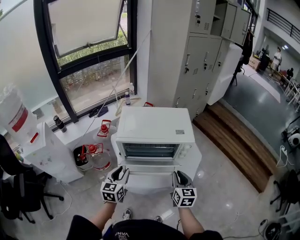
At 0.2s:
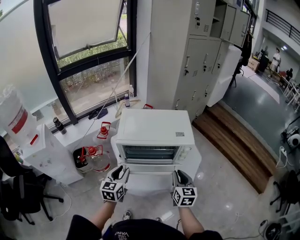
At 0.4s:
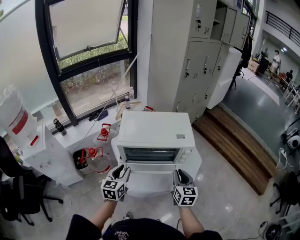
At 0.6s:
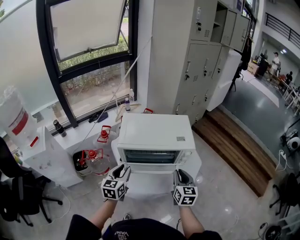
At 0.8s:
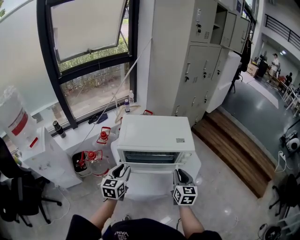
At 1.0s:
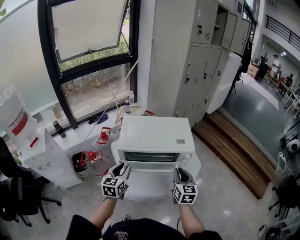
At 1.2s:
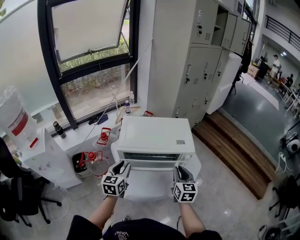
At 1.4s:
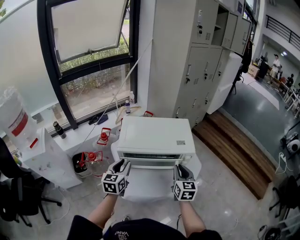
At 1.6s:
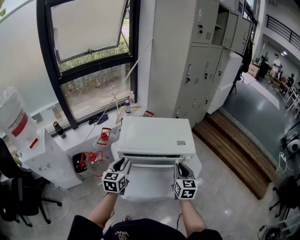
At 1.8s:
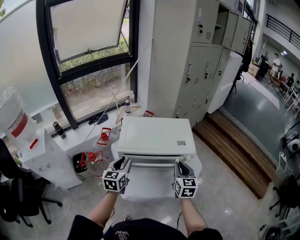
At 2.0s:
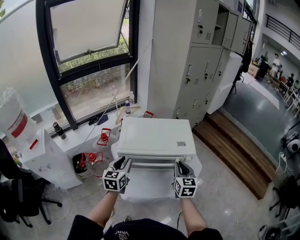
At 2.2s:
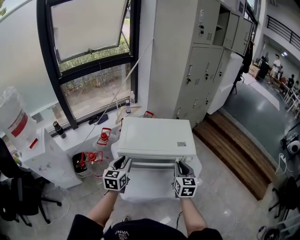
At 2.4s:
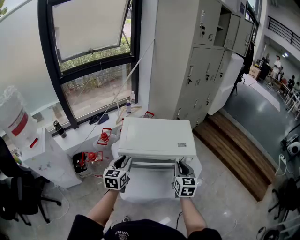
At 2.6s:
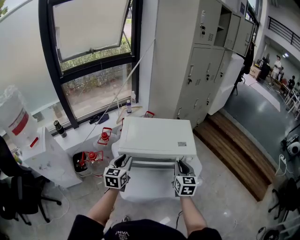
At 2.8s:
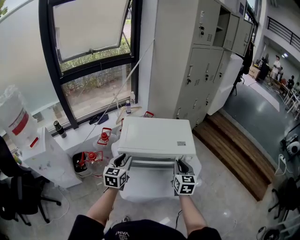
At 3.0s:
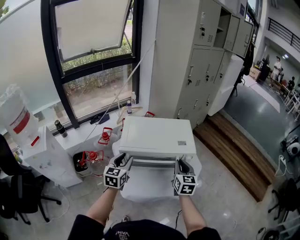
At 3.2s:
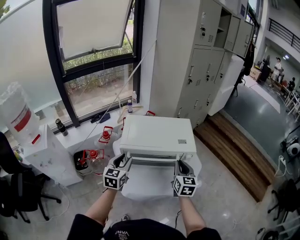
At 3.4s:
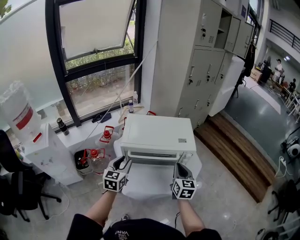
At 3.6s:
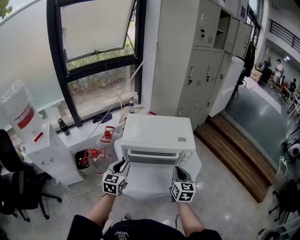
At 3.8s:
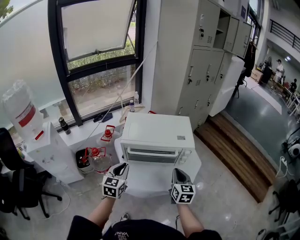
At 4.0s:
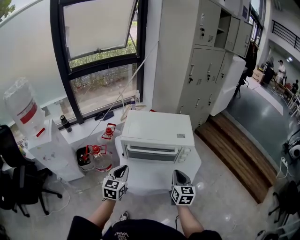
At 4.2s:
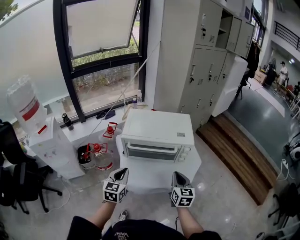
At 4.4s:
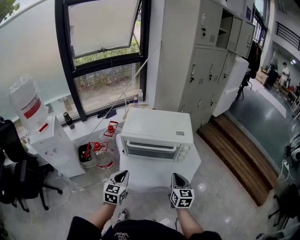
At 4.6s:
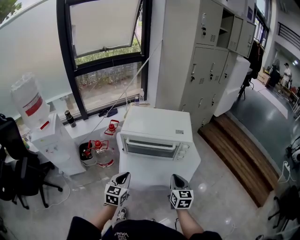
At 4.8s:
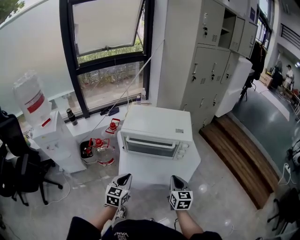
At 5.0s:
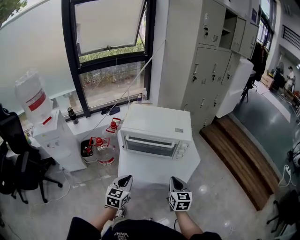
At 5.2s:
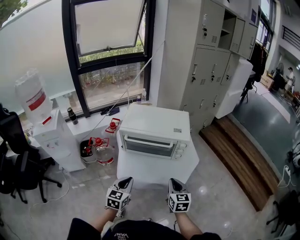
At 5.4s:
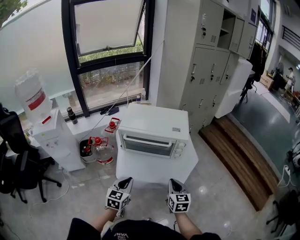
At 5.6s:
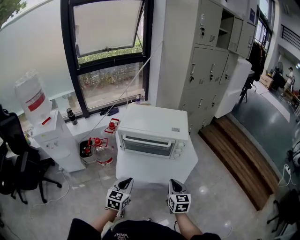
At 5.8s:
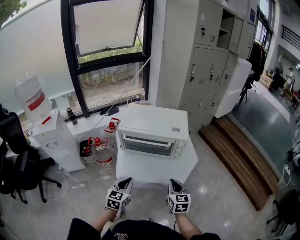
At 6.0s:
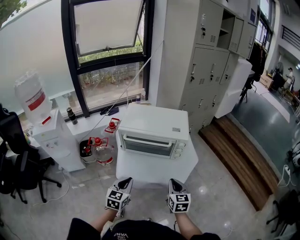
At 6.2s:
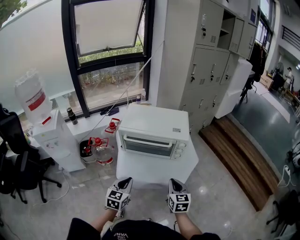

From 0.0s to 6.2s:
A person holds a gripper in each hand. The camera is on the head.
From 0.0s to 1.6s: The two grippers go roughly 10 cm forward.
From 1.6s to 3.2s: There are only small adjustments of the grippers.
From 3.2s to 4.6s: The left gripper is displaced backward by about 15 cm, and closes. The right gripper travels backward and downward by approximately 15 cm.
From 4.6s to 6.2s: The left gripper moves about 5 cm.

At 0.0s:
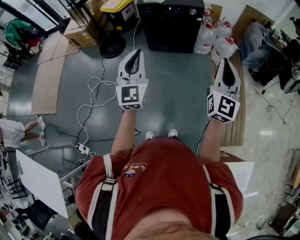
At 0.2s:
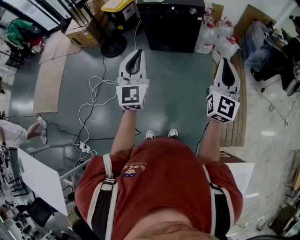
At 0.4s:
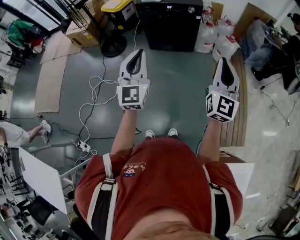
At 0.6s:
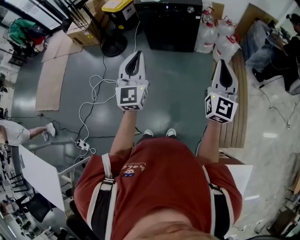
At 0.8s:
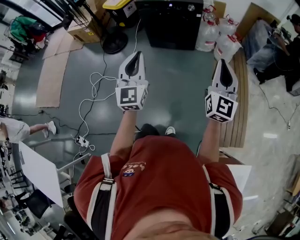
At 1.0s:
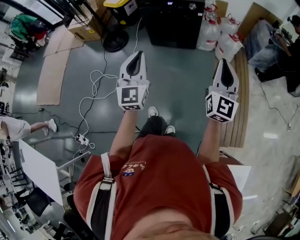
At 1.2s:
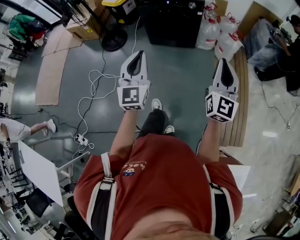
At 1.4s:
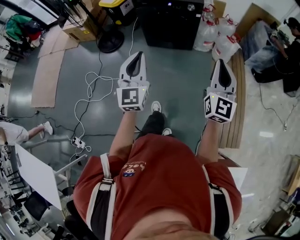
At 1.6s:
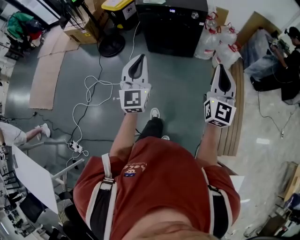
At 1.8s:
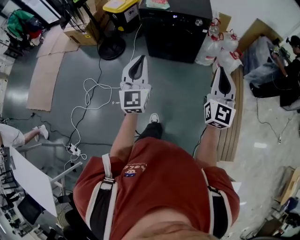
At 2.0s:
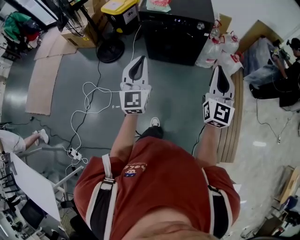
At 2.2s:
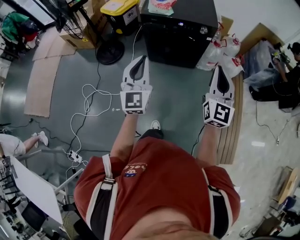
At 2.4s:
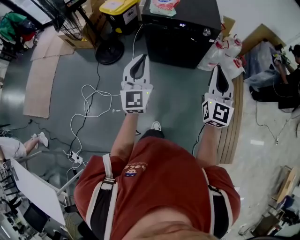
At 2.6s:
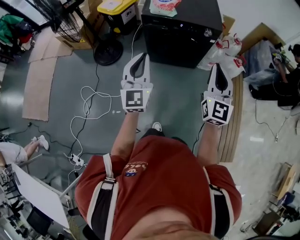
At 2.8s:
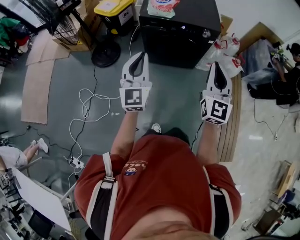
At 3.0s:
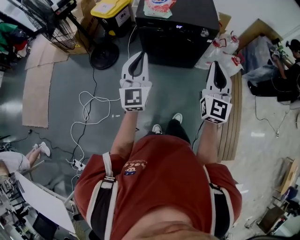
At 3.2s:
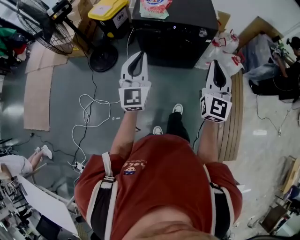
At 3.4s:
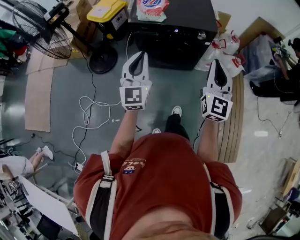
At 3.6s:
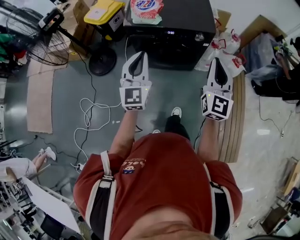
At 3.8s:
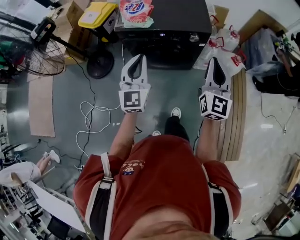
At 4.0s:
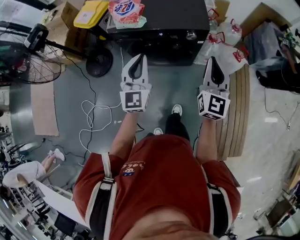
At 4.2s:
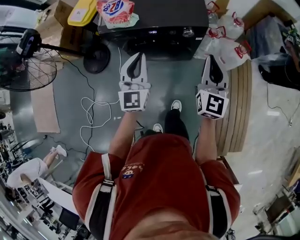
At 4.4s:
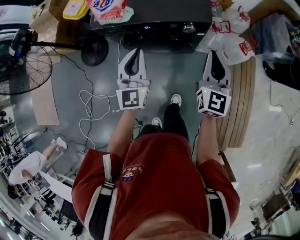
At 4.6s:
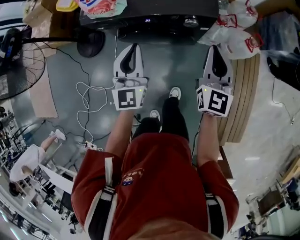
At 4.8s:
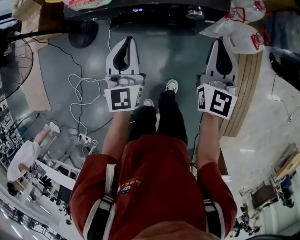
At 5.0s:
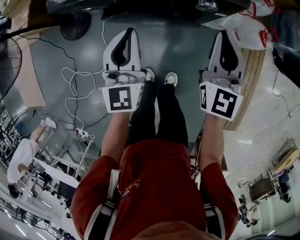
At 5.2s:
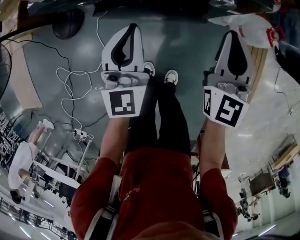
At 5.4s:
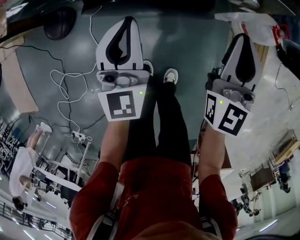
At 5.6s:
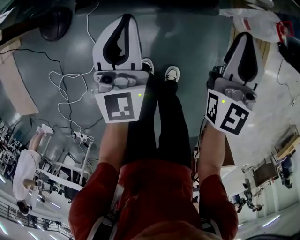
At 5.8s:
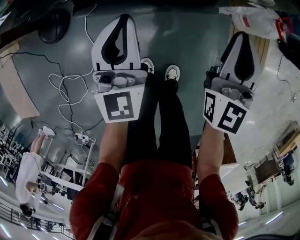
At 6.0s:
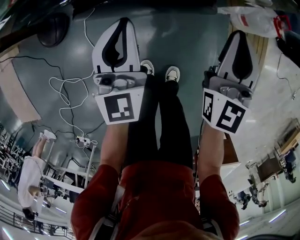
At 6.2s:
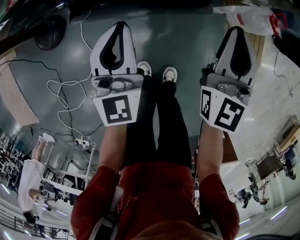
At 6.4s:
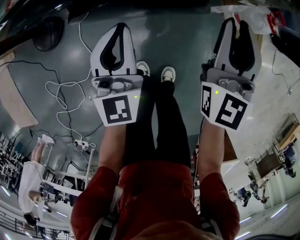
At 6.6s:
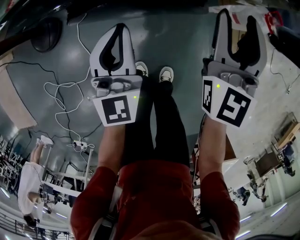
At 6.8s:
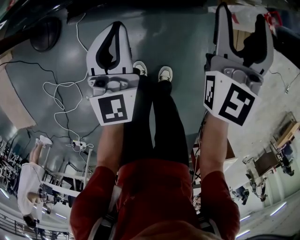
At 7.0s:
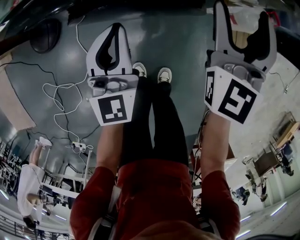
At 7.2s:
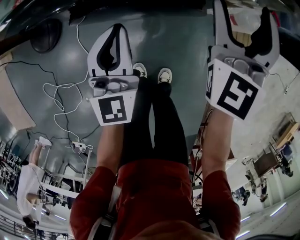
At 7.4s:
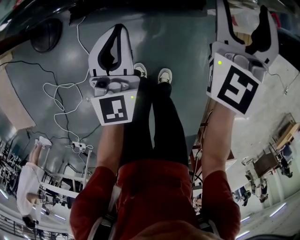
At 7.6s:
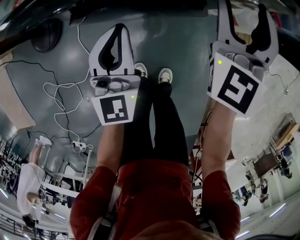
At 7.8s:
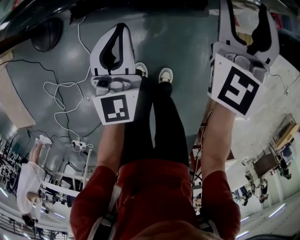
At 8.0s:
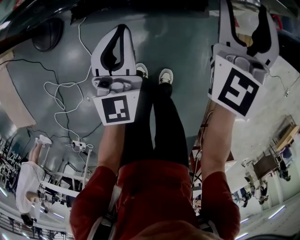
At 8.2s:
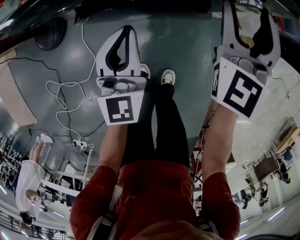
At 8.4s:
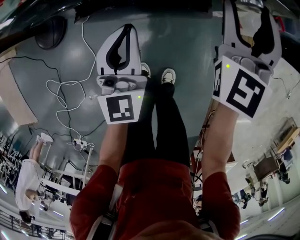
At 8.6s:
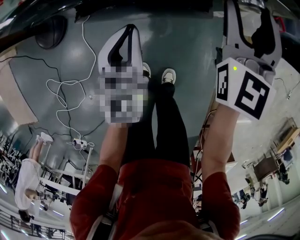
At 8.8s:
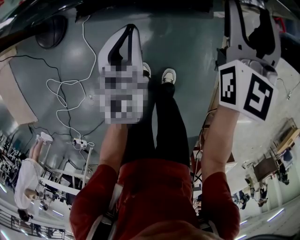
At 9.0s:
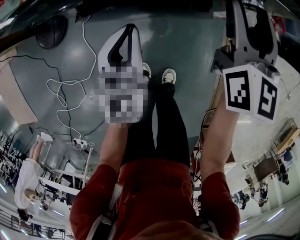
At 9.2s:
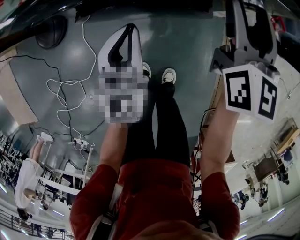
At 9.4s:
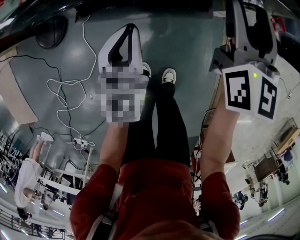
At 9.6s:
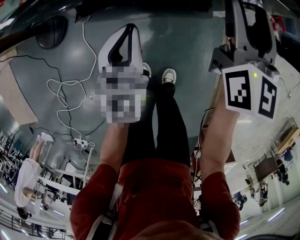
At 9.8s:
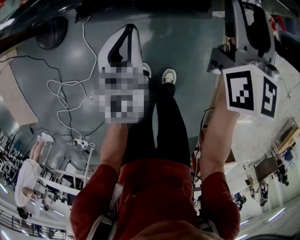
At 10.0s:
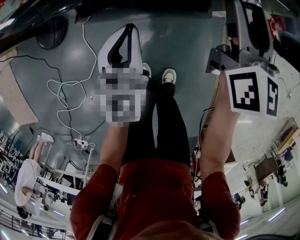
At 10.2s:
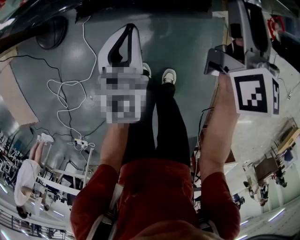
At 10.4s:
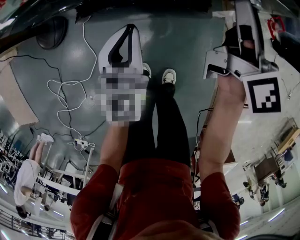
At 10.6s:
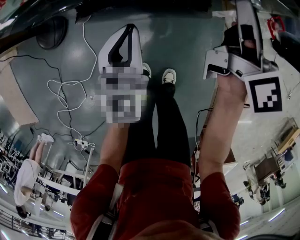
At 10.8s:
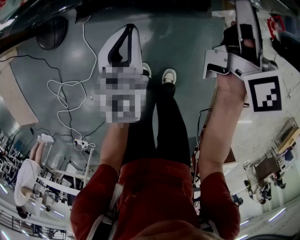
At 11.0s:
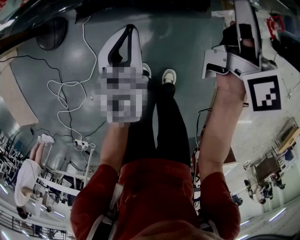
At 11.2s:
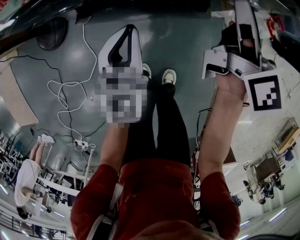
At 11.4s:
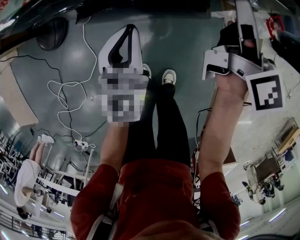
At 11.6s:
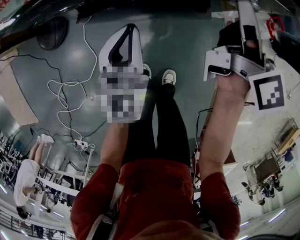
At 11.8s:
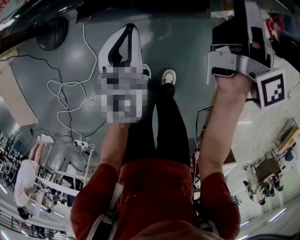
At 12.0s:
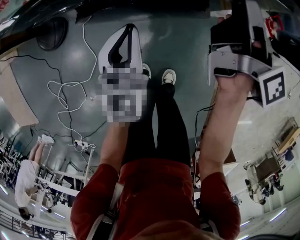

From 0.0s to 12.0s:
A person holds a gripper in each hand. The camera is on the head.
From 0.0s to 1.6s: The right gripper heads forward, covering roughly 10 cm, while the left gripper travels forward and to the right by approximately 10 cm.
From 1.6s to 3.0s: Both grippers move forward and to the left, some 35 cm.
From 3.0s to 4.4s: Both grippers travel together forward, to the right and downward, roughly 40 cm.
From 4.4s to 6.0s: The grippers both shift downward by about 35 cm.
From 6.0s to 7.6s: The right gripper goes about 10 cm forward and upward, and opens.
From 7.6s to 9.0s: The right gripper swivels roughly 30 degrees.
From 9.0s to 10.4s: The right gripper changes its angle by about 30 degrees.
From 10.4s to 12.0s: The right gripper rotates roughly 40 degrees.

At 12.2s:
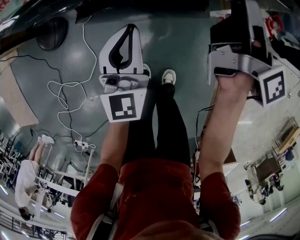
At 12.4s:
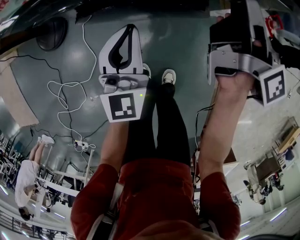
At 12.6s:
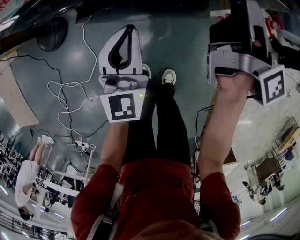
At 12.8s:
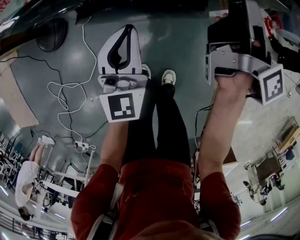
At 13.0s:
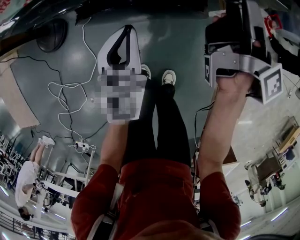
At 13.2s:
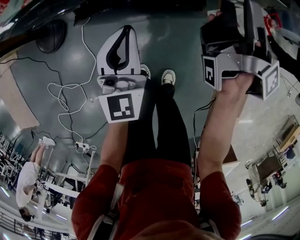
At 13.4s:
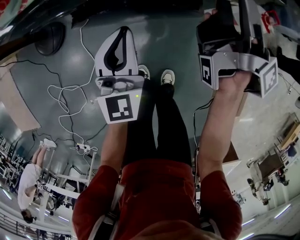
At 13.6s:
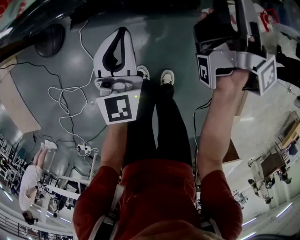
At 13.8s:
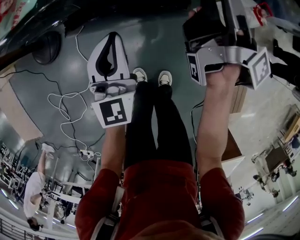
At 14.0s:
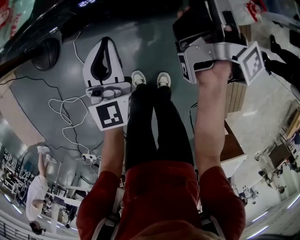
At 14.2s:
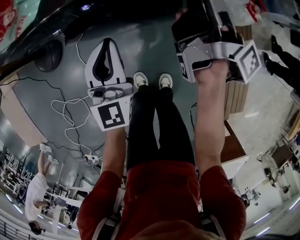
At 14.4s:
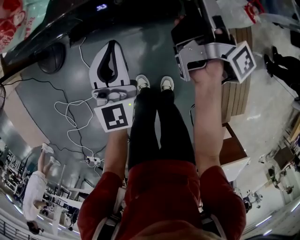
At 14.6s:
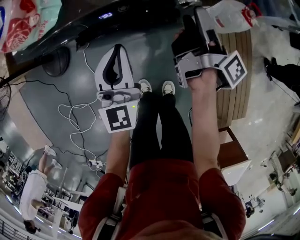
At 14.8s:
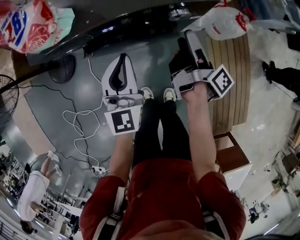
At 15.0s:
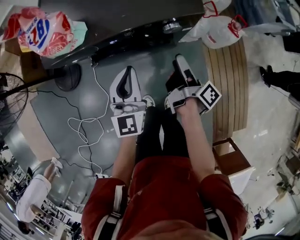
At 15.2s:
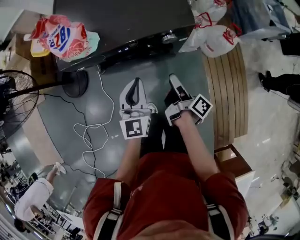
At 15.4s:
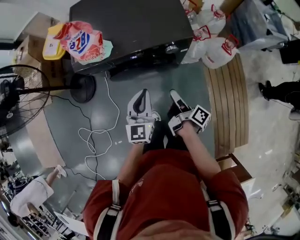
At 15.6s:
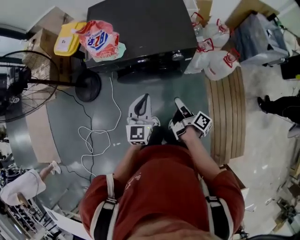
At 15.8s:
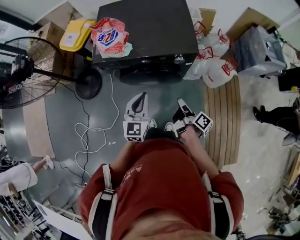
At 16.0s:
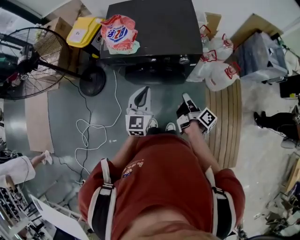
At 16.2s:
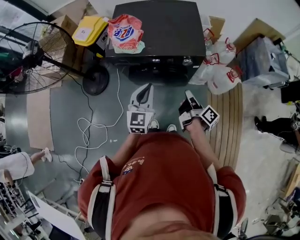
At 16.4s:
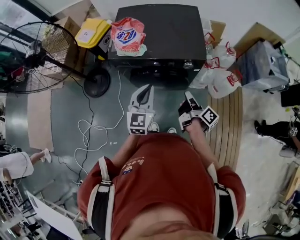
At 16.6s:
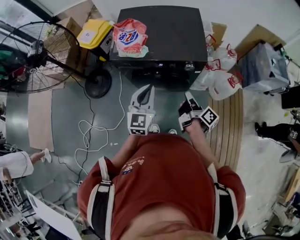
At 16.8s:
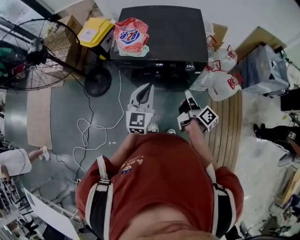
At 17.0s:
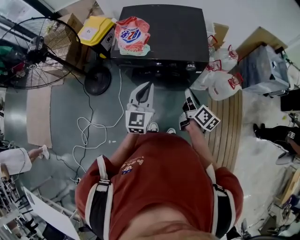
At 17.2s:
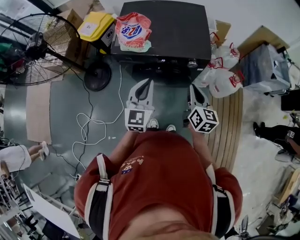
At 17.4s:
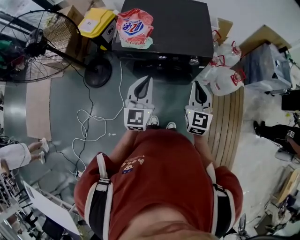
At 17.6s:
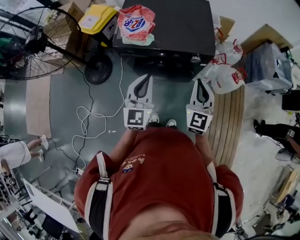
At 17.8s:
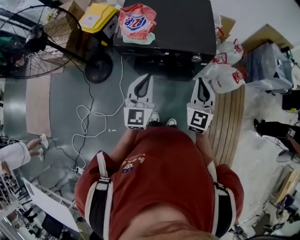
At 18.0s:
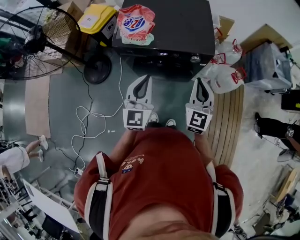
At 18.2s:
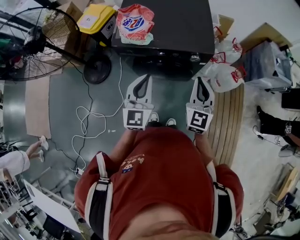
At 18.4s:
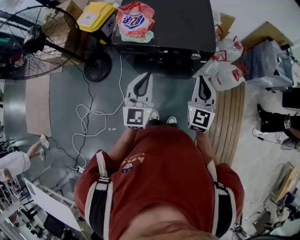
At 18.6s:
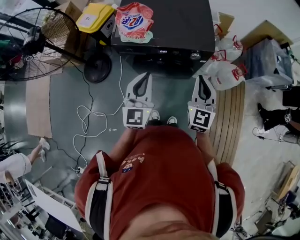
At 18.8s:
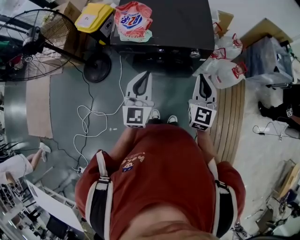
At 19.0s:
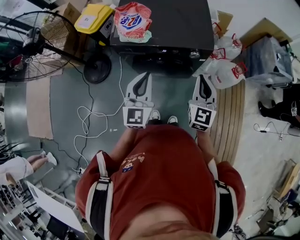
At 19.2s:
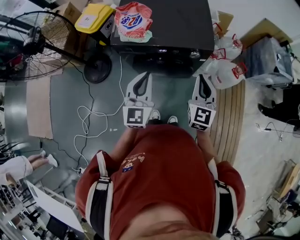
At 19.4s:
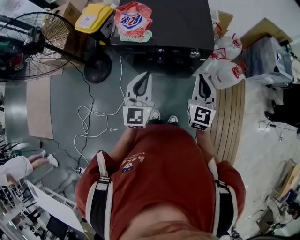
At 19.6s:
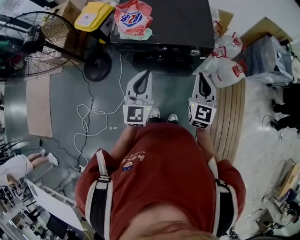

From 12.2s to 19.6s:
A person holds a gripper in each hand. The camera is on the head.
From 12.2s to 13.6s: The right gripper rotates about 20 degrees.
From 13.6s to 15.2s: The left gripper moves upward, approximately 20 cm, while the right gripper moves backward, roughly 15 cm.
From 15.2s to 16.6s: The right gripper is displaced upward by roughly 20 cm, and closes. Meanwhile the left gripper is displaced upward and backward by roughly 20 cm.
From 16.6s to 18.2s: The right gripper moves upward, about 10 cm, and rolls counterclockwise, seen from behind, by some 100 degrees.
From 18.2s to 19.6s: The grippers stay close to where they were, moving slightly.
